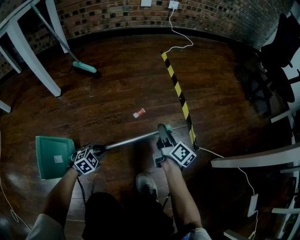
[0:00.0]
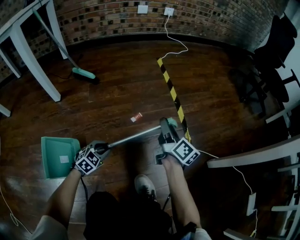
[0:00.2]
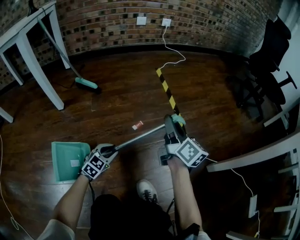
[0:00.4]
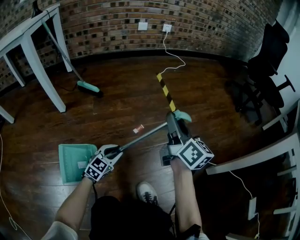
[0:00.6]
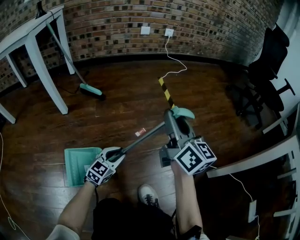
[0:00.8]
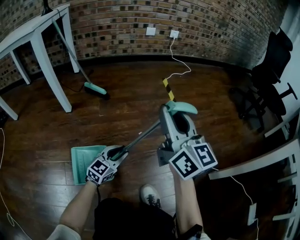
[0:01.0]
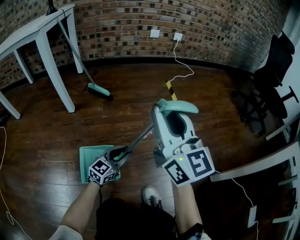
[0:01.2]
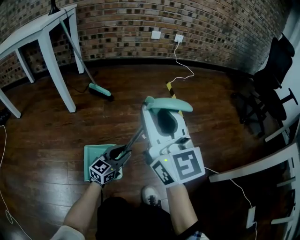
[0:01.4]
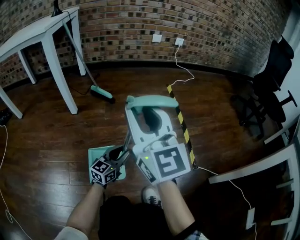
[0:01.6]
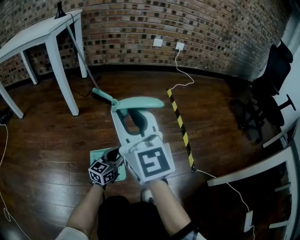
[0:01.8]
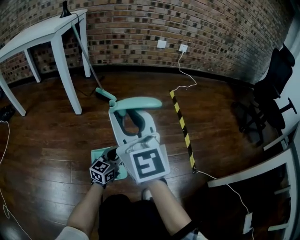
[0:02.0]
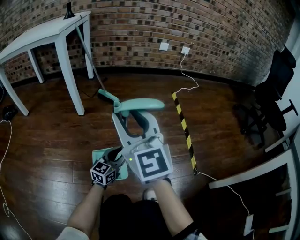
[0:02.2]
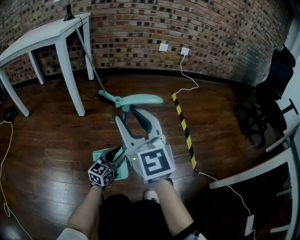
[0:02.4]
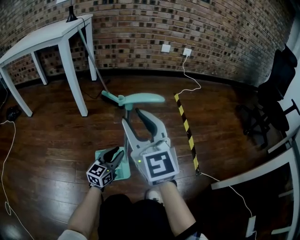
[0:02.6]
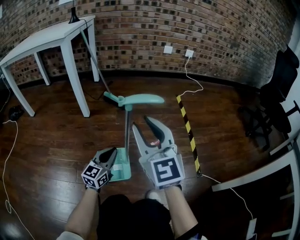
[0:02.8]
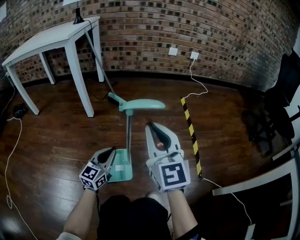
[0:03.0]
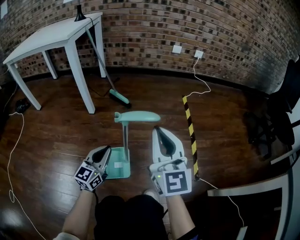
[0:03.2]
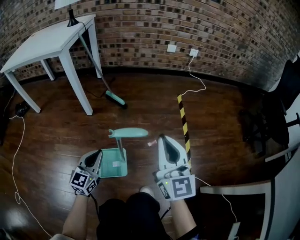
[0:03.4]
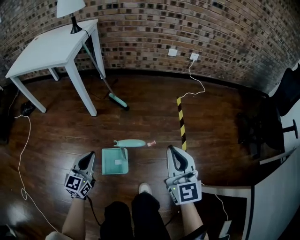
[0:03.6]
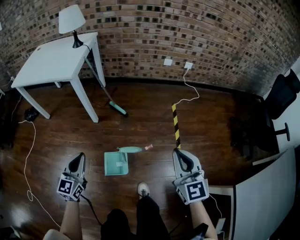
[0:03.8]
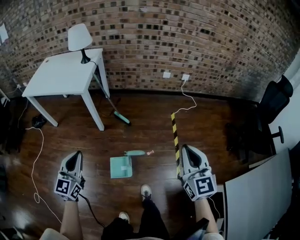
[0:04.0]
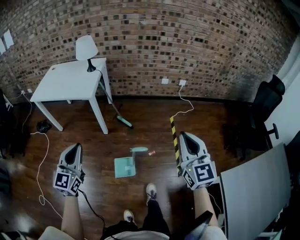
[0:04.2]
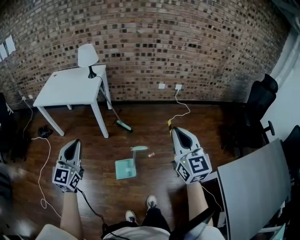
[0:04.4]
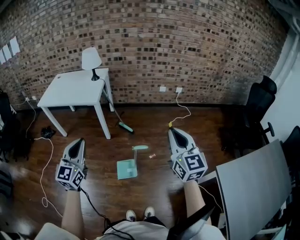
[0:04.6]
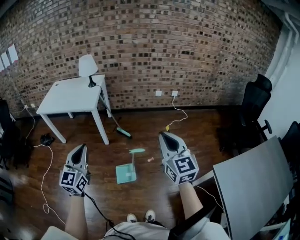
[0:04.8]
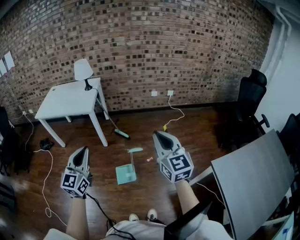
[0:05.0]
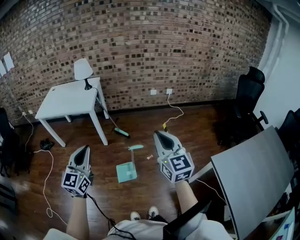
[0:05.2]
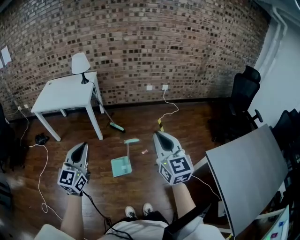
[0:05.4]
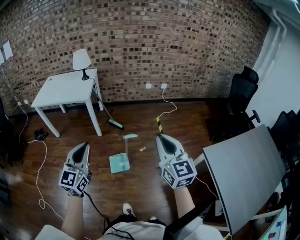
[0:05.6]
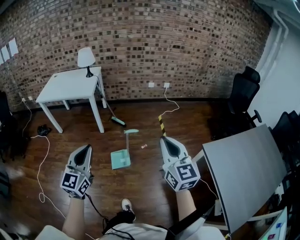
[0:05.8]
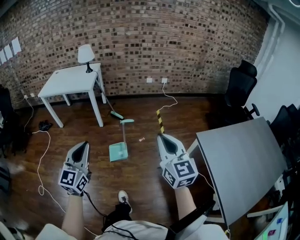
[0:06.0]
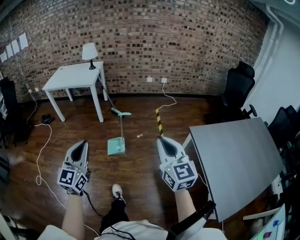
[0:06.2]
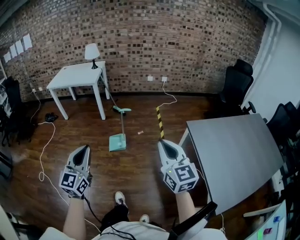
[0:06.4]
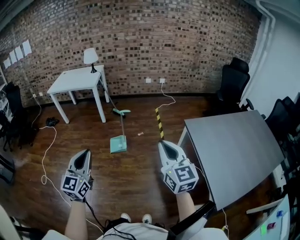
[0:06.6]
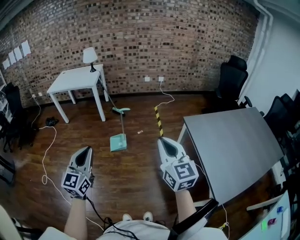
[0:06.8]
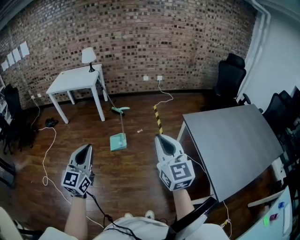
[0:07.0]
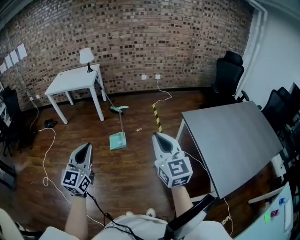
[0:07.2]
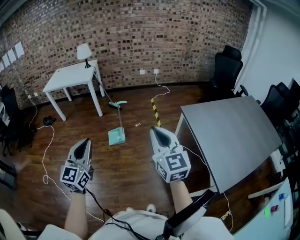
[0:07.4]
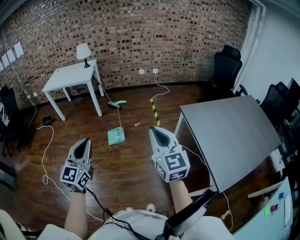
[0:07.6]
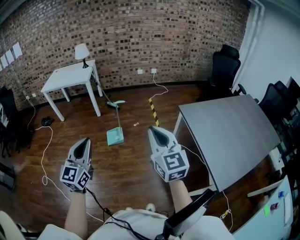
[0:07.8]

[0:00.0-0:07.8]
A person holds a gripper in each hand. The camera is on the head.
0:00.0 to 0:01.6: The left gripper goes some 20 cm upward, and points its fingers about 50 degrees further upward, while the right gripper travels upward and to the left by about 50 cm, and rotates around the line of its fingers by about 60 degrees, counterclockwise from behind.
0:01.6 to 0:03.2: The left gripper moves upward and to the left, roughly 20 cm, swivels approximately 20 degrees, and closes up.
0:03.2 to 0:04.6: The grippers both shift upward by about 60 cm.
0:04.6 to 0:06.2: Both grippers are carried backward, some 40 cm.
0:06.2 to 0:07.8: The two grippers go about 15 cm backward.

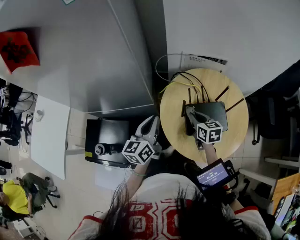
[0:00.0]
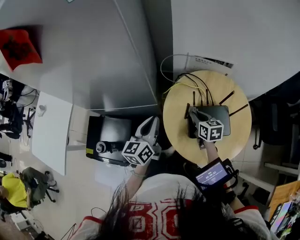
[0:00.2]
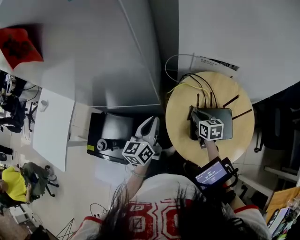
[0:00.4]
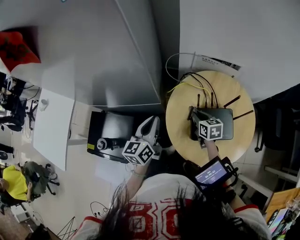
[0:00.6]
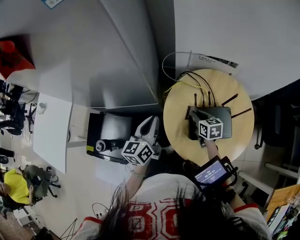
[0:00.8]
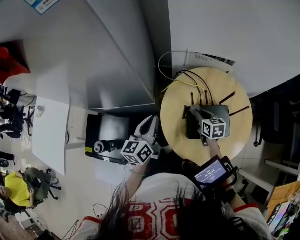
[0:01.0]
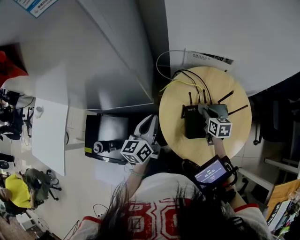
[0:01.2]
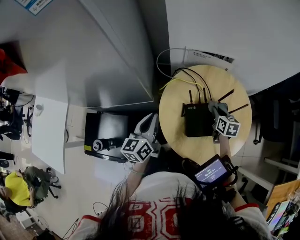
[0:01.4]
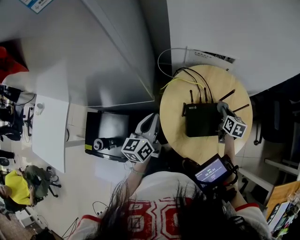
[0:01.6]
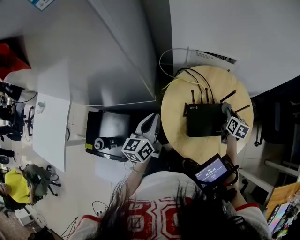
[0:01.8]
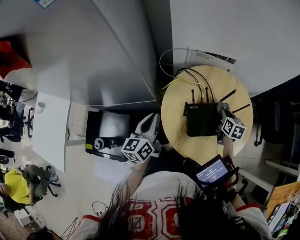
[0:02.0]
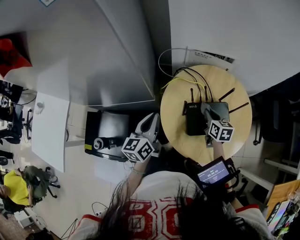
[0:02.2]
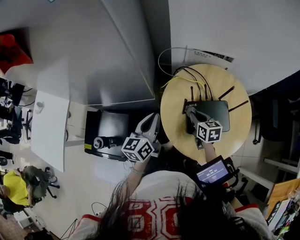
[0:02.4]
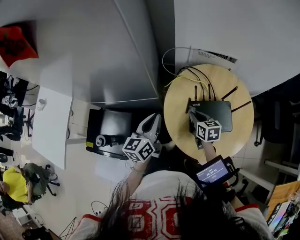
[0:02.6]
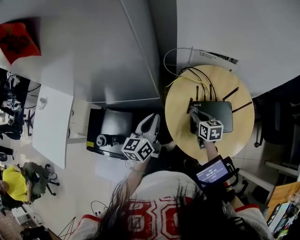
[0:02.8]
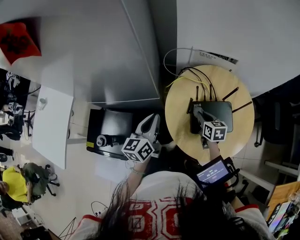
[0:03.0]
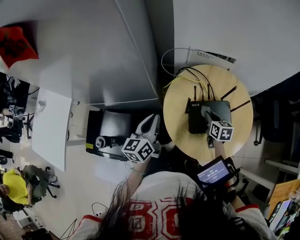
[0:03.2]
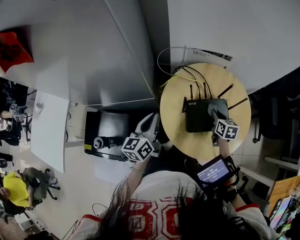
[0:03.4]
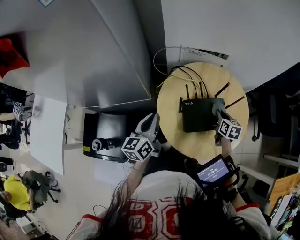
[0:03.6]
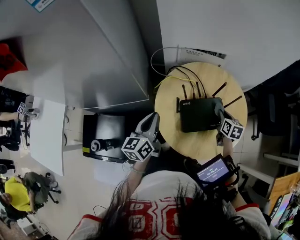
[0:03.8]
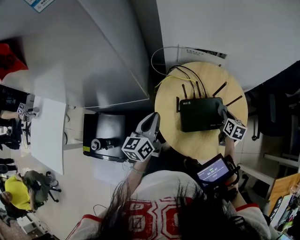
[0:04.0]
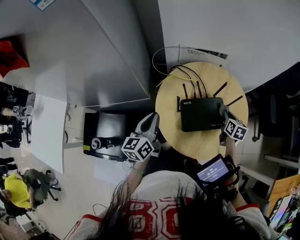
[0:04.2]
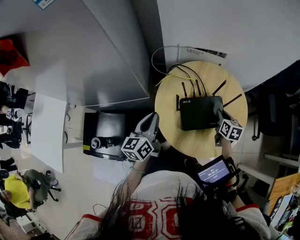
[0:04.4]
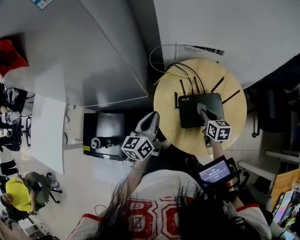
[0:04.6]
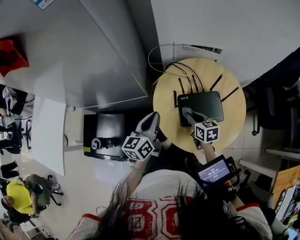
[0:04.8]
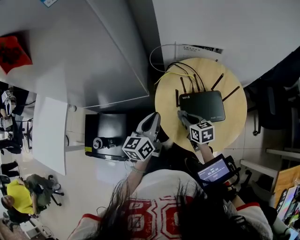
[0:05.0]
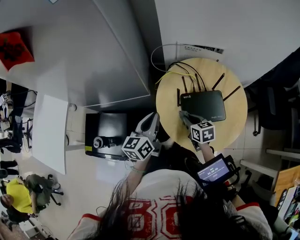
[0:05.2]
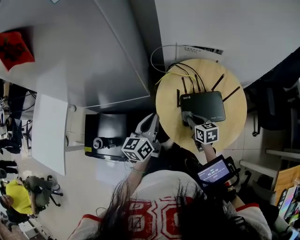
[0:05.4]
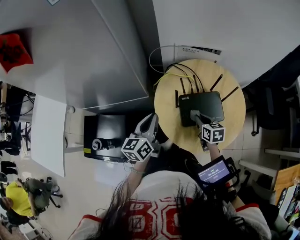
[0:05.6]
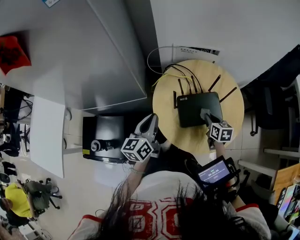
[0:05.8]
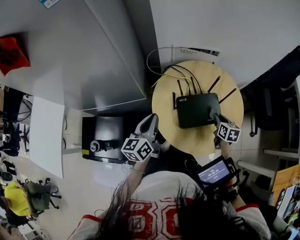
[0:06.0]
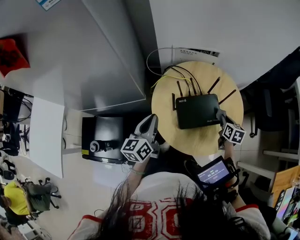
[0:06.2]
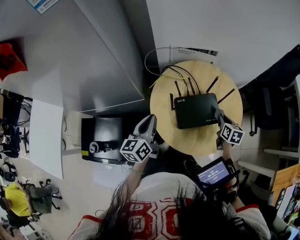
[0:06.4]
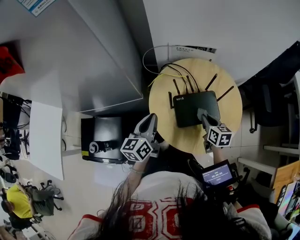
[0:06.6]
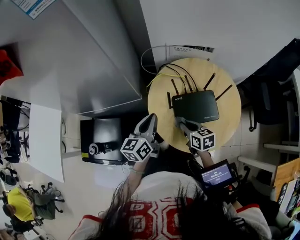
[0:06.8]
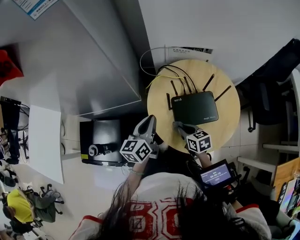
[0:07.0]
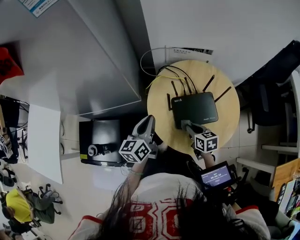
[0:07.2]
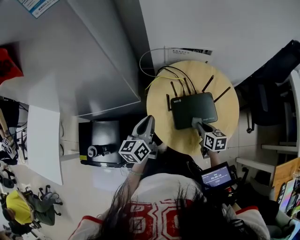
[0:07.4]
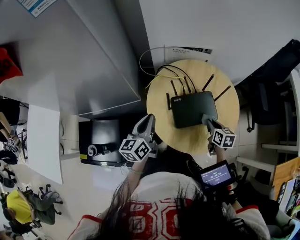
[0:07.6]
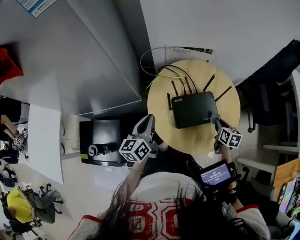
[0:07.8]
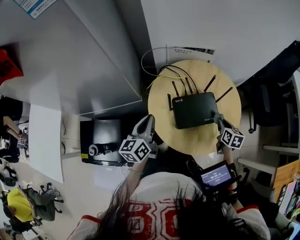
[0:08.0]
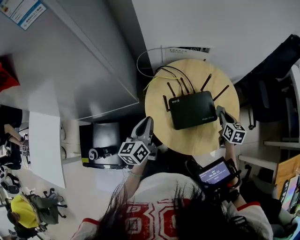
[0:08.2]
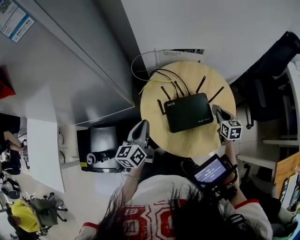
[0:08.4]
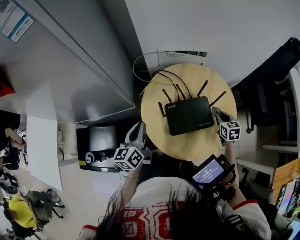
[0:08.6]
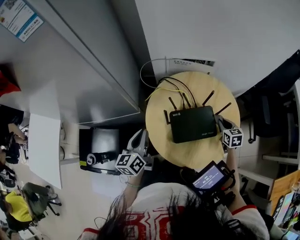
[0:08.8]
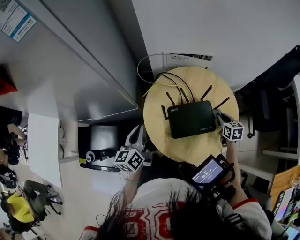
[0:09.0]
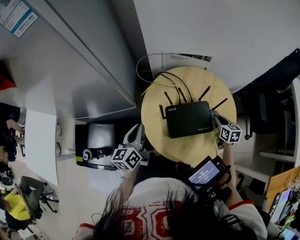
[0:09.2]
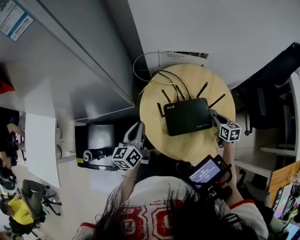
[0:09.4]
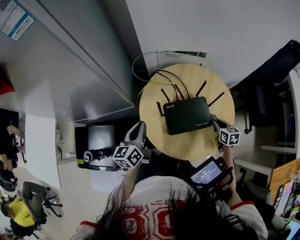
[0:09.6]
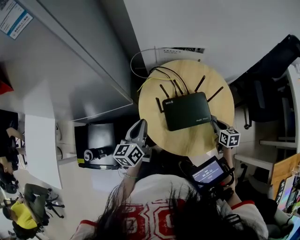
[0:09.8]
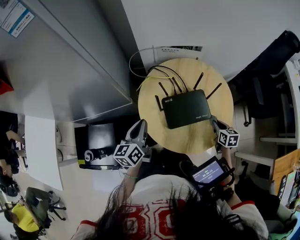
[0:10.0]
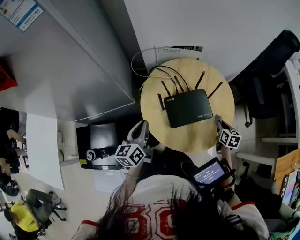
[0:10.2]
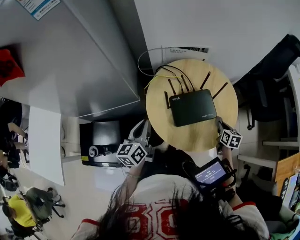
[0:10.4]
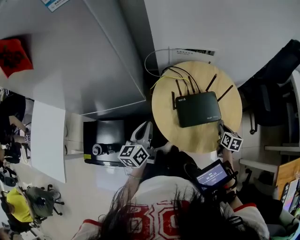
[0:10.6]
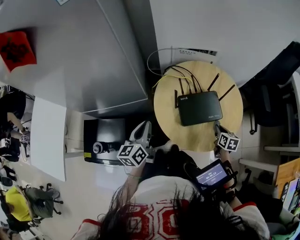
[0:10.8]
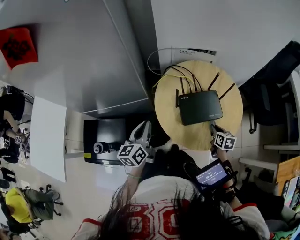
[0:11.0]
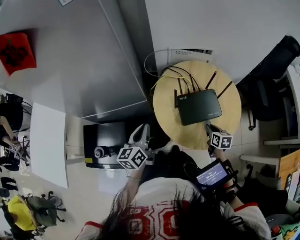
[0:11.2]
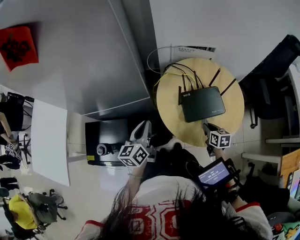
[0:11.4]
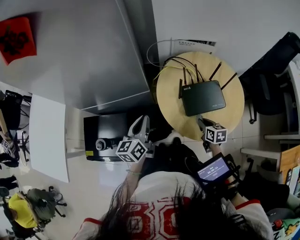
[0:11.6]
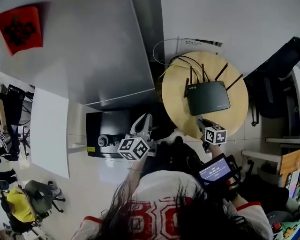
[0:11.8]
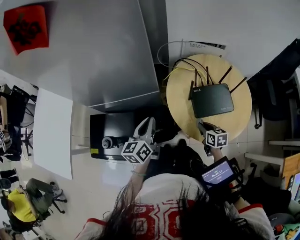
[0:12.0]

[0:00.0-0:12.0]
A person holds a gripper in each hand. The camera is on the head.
0:00.0 to 0:01.6: The right gripper goes roughly 20 cm to the right, and rotates about 20 degrees.
0:01.6 to 0:03.0: The right gripper heads to the left, covering about 15 cm.
0:03.0 to 0:04.4: The right gripper shifts about 15 cm to the right.
0:04.4 to 0:06.0: The right gripper travels to the left and back again, approximately 20 cm each way.
0:06.0 to 0:07.6: The right gripper moves left and right over roughly 25 cm, changing direction 2 times.
0:07.6 to 0:09.0: The right gripper moves forward and to the right, roughly 10 cm.
0:09.0 to 0:10.4: The right gripper travels backward by some 10 cm.
0:10.4 to 0:12.0: The left gripper travels to the left by roughly 10 cm, while the right gripper moves to the left, roughly 25 cm, and turns by some 20 degrees.

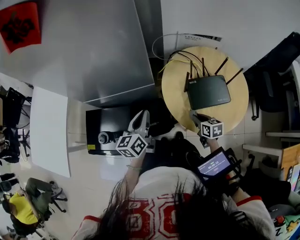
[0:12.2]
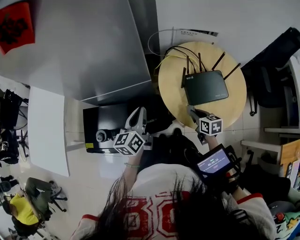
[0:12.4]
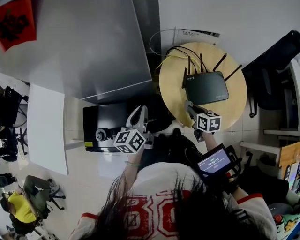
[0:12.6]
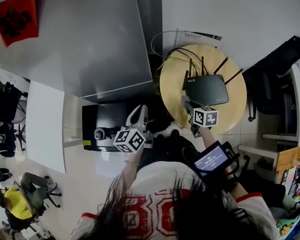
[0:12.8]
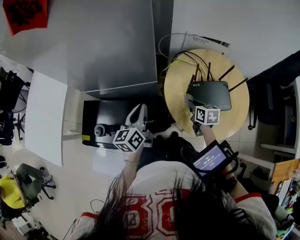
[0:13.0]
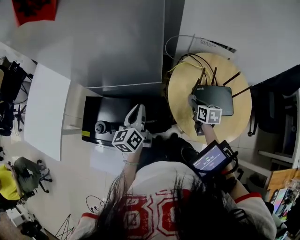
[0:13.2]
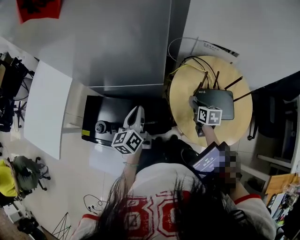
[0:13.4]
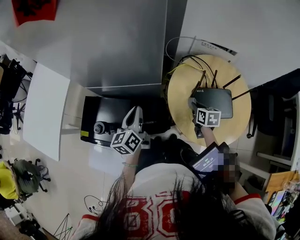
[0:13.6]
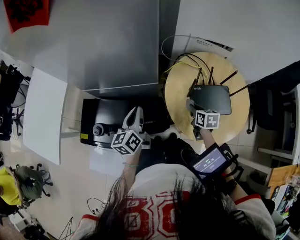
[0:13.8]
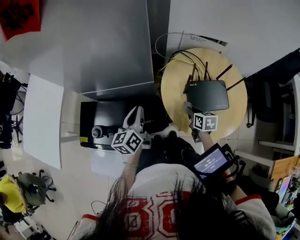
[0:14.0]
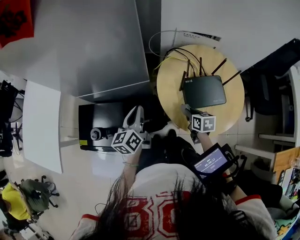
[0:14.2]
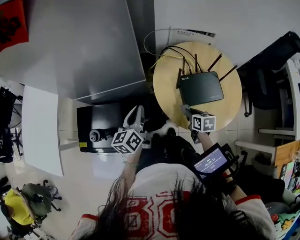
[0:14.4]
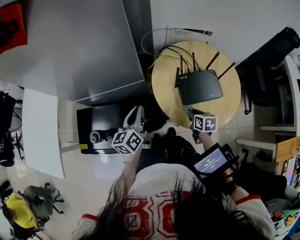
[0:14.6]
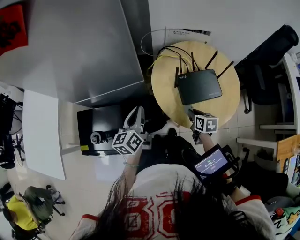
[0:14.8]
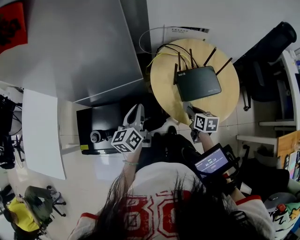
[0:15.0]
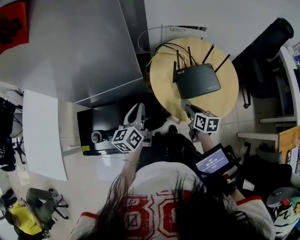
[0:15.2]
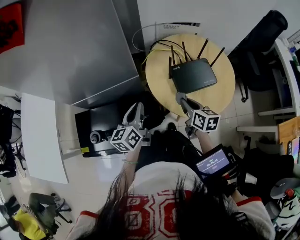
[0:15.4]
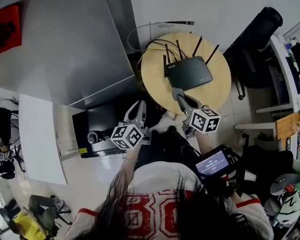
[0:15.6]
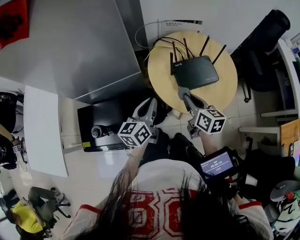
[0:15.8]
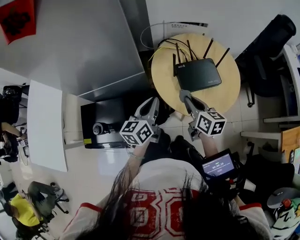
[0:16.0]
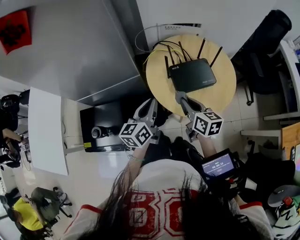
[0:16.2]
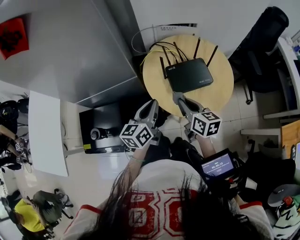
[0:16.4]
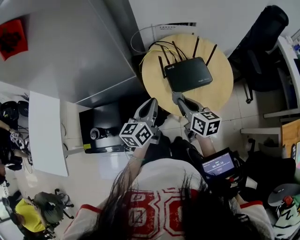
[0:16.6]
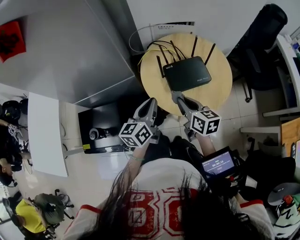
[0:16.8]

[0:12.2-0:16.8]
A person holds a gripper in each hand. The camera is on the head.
0:12.2 to 0:13.8: The right gripper shifts about 10 cm forward.
0:13.8 to 0:15.2: The right gripper travels backward by about 10 cm, while the left gripper heads to the right, covering approximately 5 cm.
0:15.2 to 0:16.8: The right gripper shifts approximately 10 cm upward. Meanwhile the left gripper heads to the right, covering approximately 10 cm.
